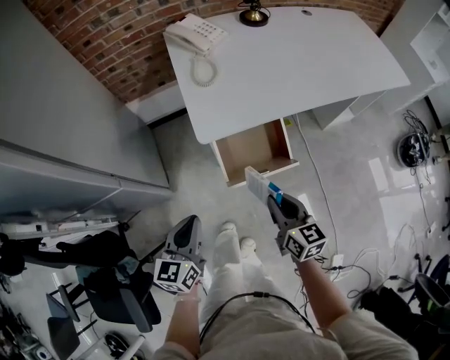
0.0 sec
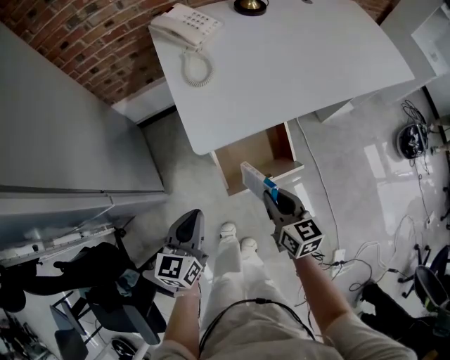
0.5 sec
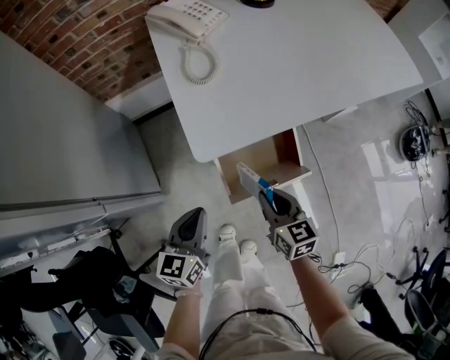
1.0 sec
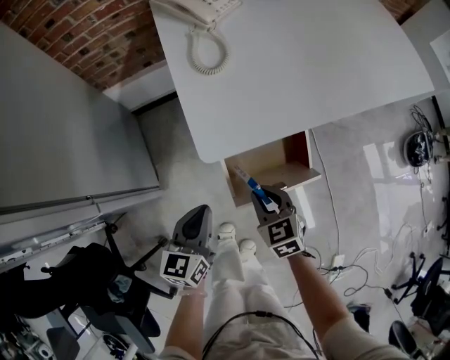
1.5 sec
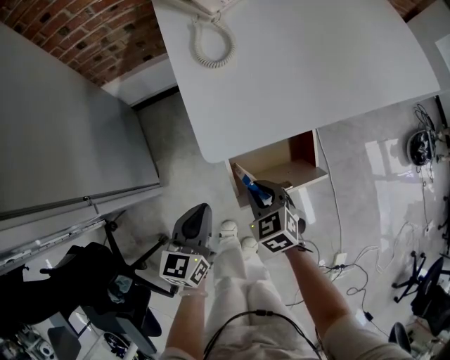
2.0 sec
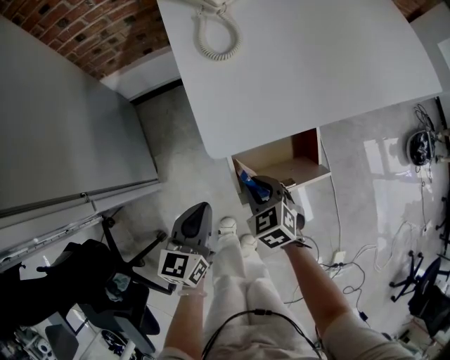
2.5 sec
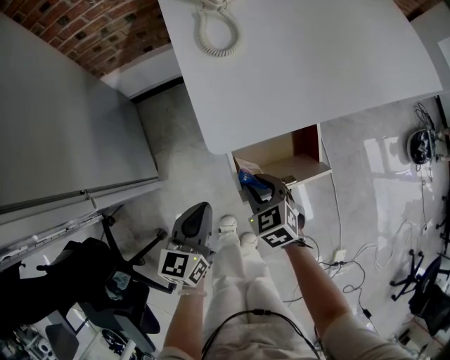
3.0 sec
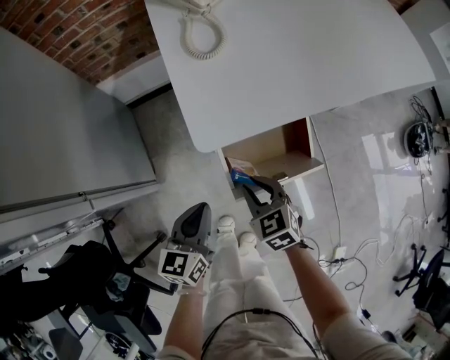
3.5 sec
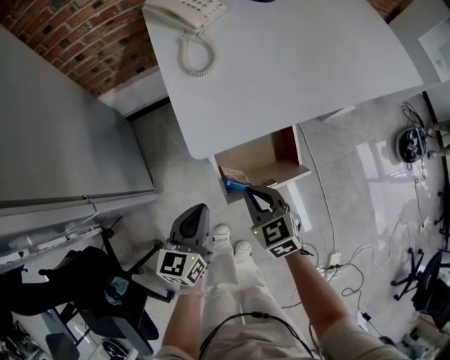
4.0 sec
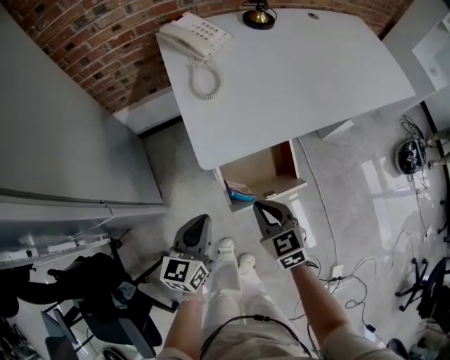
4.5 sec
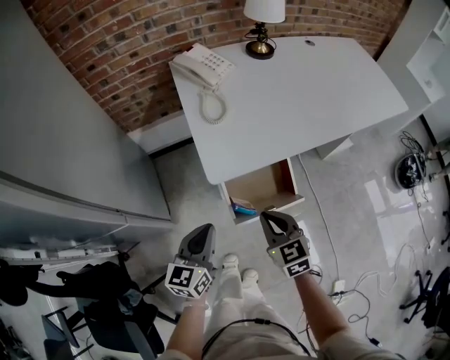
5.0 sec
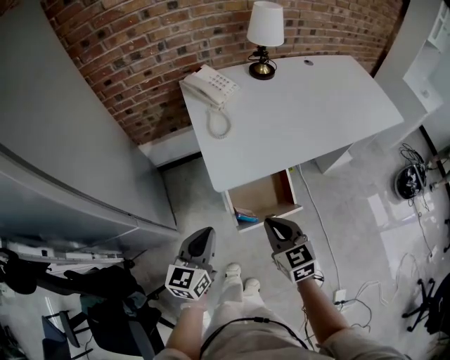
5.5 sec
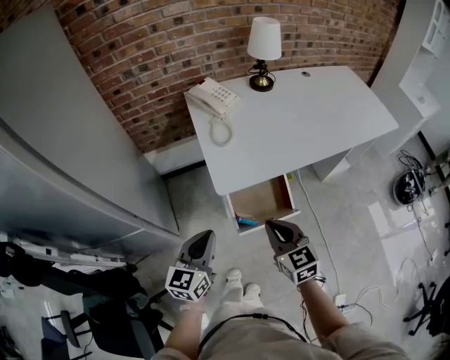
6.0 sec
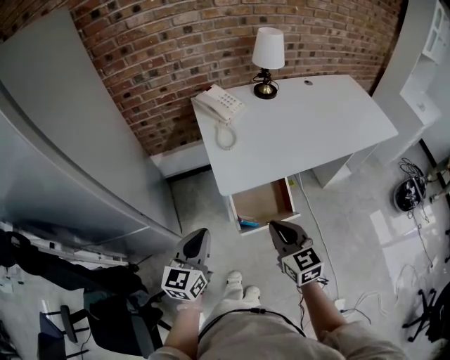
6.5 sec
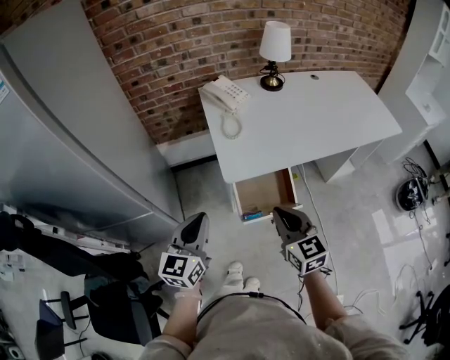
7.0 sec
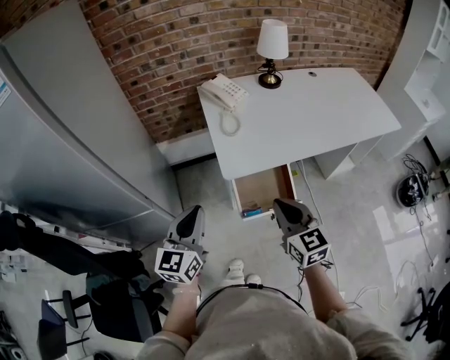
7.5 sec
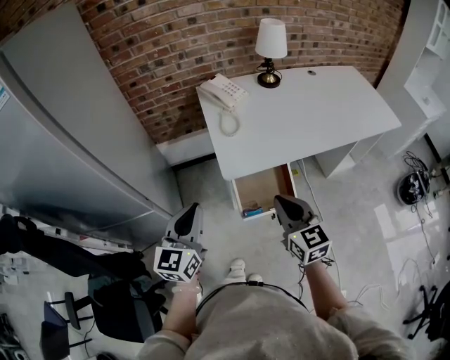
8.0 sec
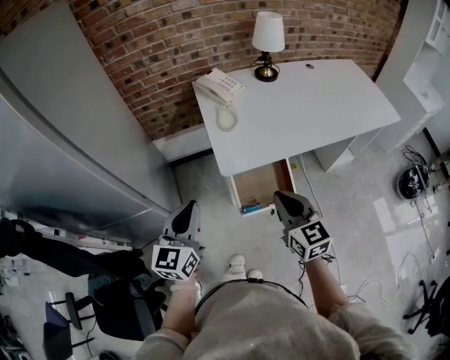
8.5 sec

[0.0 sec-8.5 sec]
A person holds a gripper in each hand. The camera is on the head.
0.0 sec to 2.0 sec: The right gripper shifts about 20 cm downward, forward and to the left, and turns by roughly 50 degrees. The left gripper heads downward and forward, covering some 15 cm.
2.0 sec to 4.0 sec: The right gripper moves upward, some 5 cm.
4.0 sec to 6.5 sec: The two grippers go some 20 cm upward. The right gripper changes its angle by about 20 degrees.
6.5 sec to 8.5 sec: The left gripper changes place by approximately 5 cm.

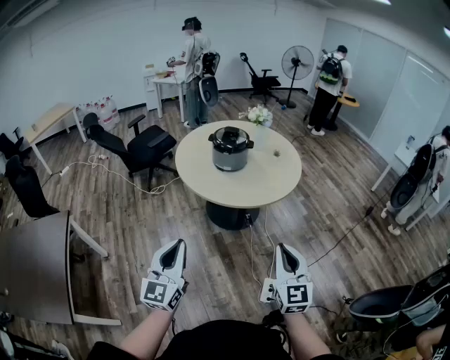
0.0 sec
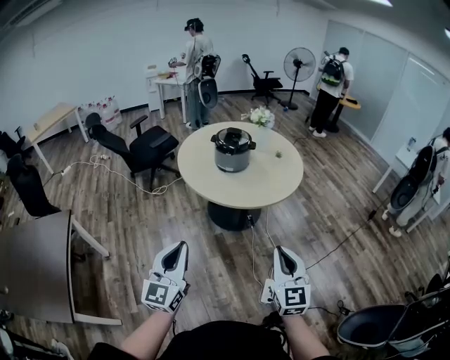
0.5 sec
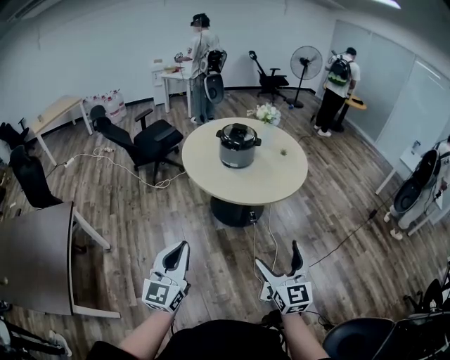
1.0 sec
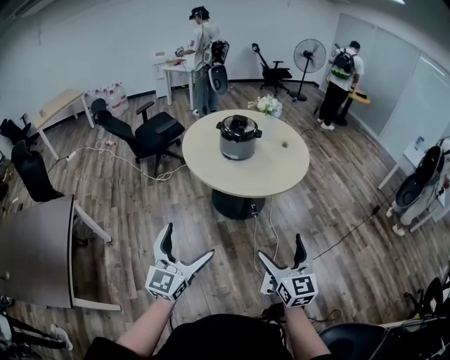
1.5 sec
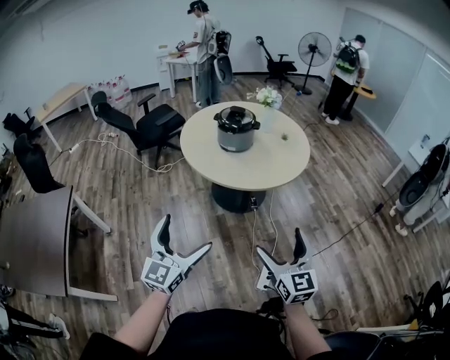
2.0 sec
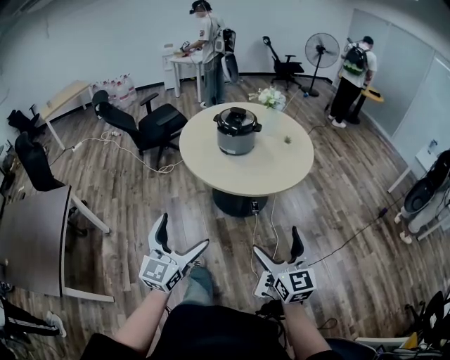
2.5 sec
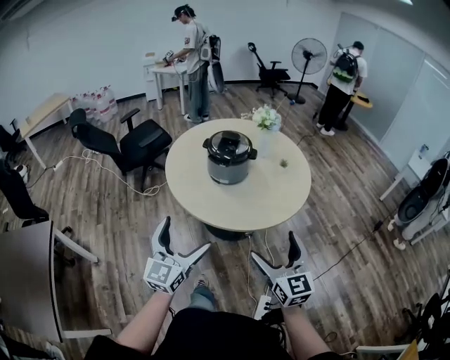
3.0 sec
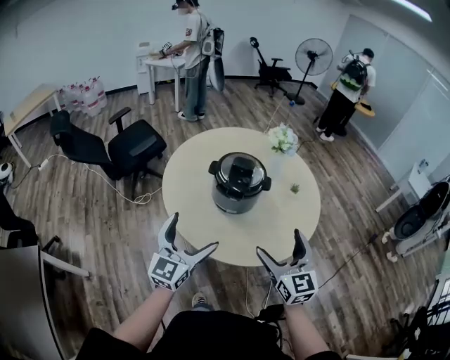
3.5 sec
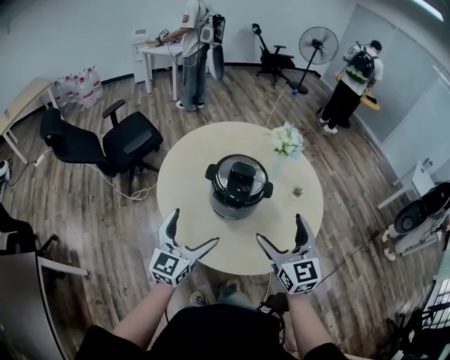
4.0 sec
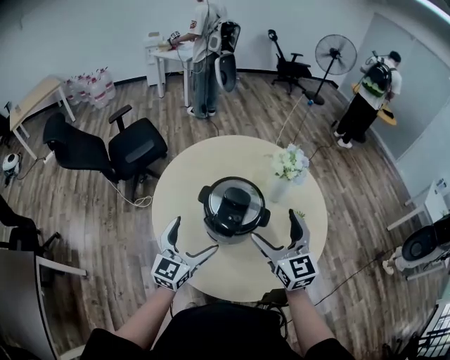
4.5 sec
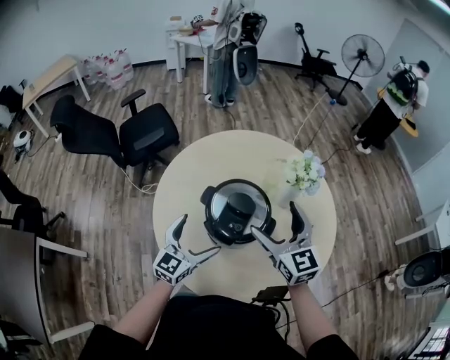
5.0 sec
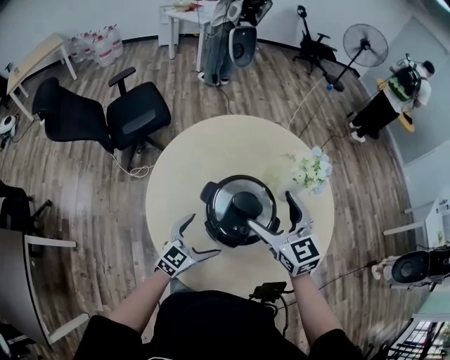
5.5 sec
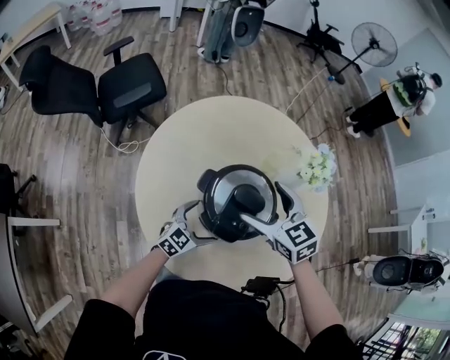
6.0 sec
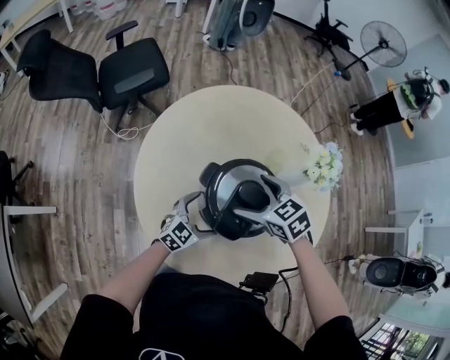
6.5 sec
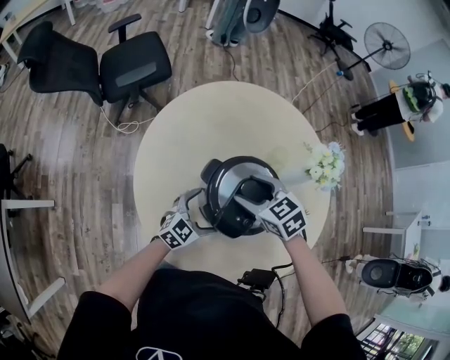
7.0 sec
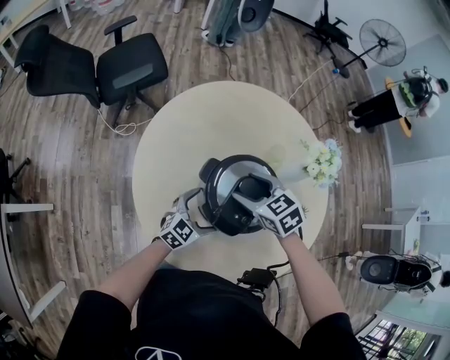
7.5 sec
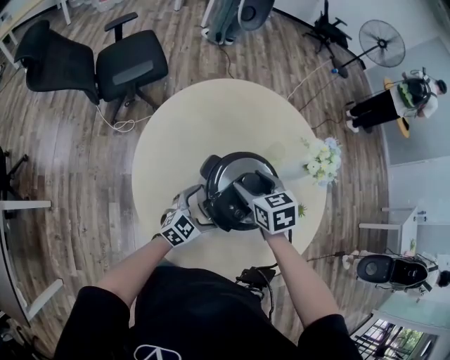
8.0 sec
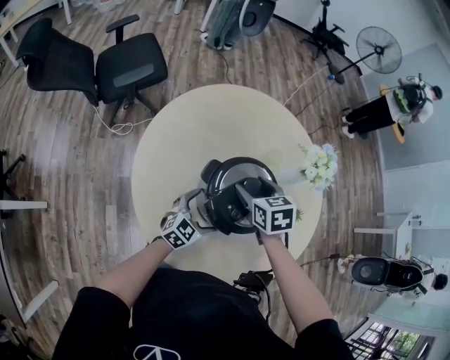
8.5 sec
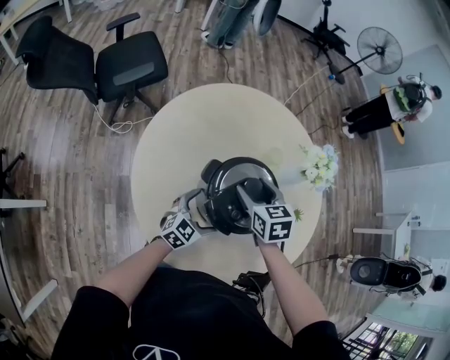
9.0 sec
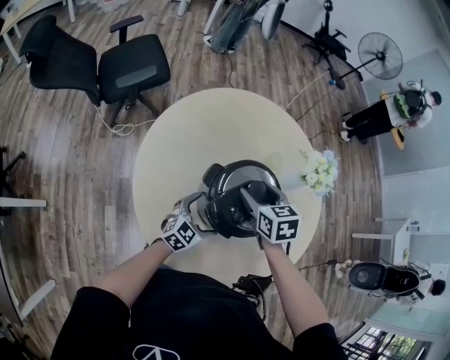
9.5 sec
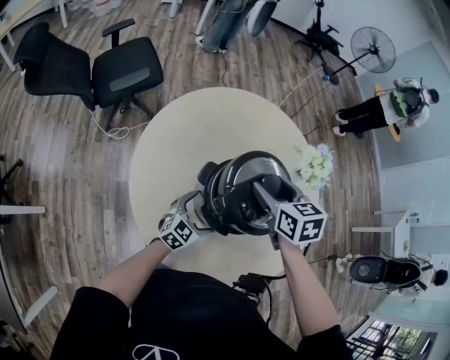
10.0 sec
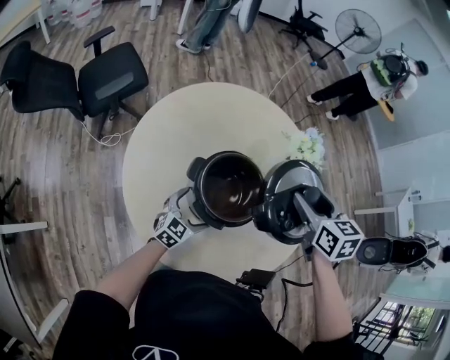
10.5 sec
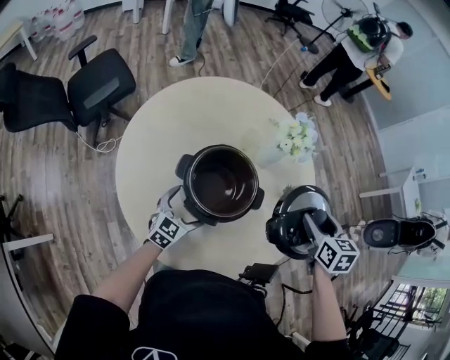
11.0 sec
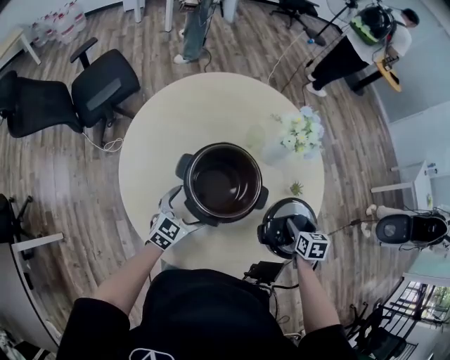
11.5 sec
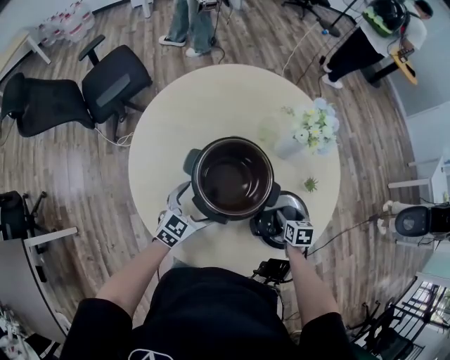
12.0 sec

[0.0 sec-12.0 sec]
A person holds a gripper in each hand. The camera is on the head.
0.0 sec to 2.0 sec: The right gripper opens its fingers. Meanwhile the left gripper travels to the right by approximately 5 cm, and opens up.
2.0 sec to 4.0 sec: The pair of grippers is taken forward, some 60 cm.
4.0 sec to 6.0 sec: The left gripper heads downward and forward, covering some 30 cm, and swivels approximately 30 degrees, while the right gripper is displaced forward by approximately 30 cm, and changes its angle by about 40 degrees.
6.0 sec to 8.0 sec: The right gripper goes about 10 cm downward, and closes.
8.0 sec to 10.0 sec: The right gripper moves upward, approximately 10 cm.
10.0 sec to 12.0 sec: The right gripper heads downward and to the right, covering about 40 cm, and changes its angle by approximately 30 degrees.

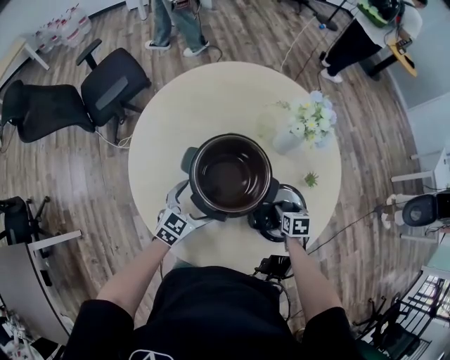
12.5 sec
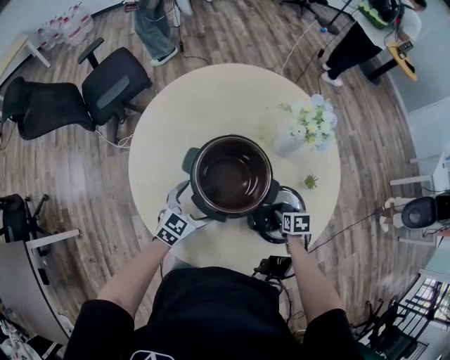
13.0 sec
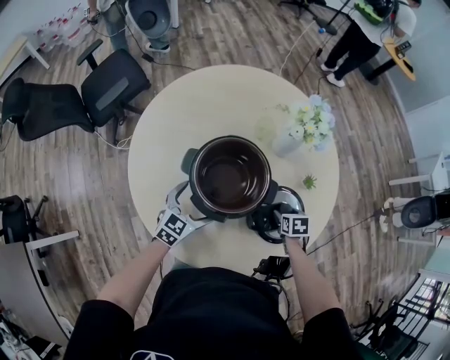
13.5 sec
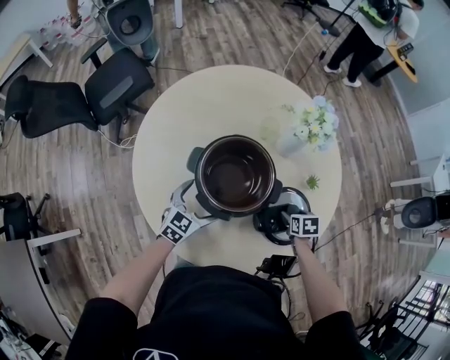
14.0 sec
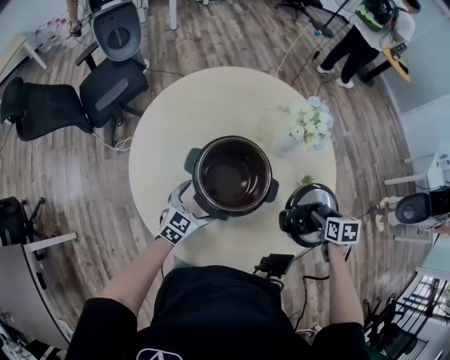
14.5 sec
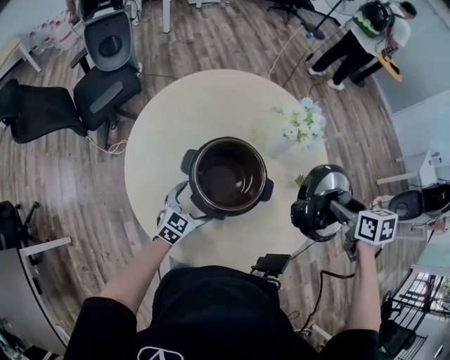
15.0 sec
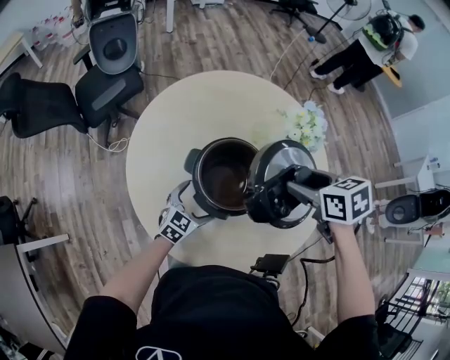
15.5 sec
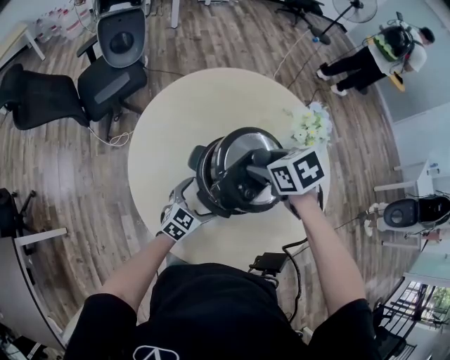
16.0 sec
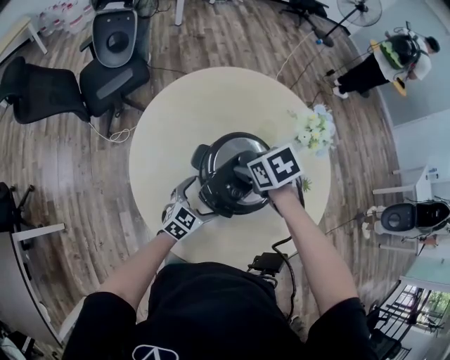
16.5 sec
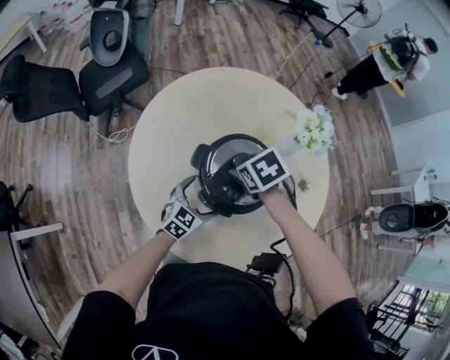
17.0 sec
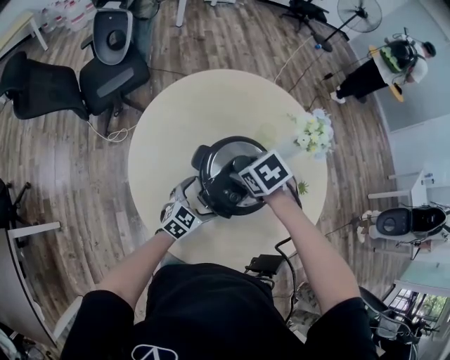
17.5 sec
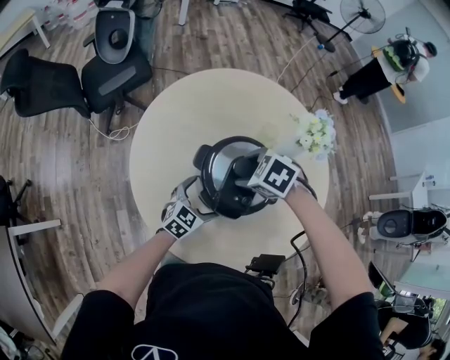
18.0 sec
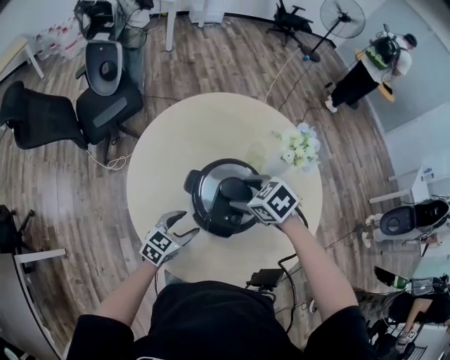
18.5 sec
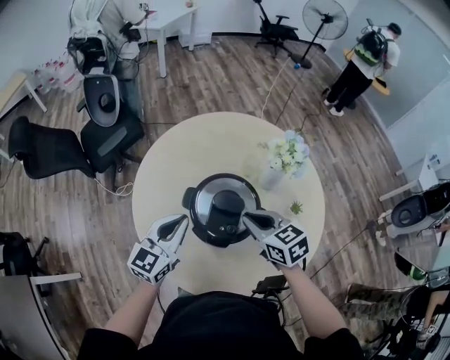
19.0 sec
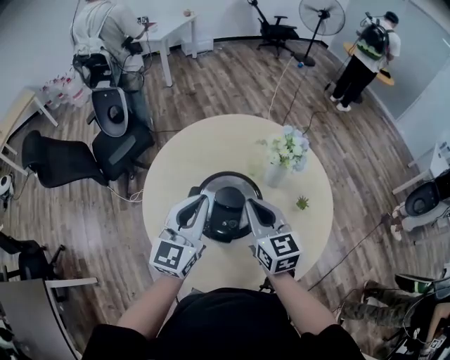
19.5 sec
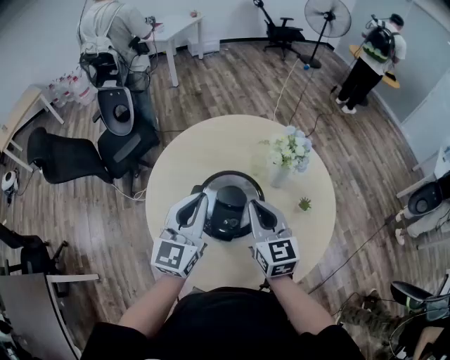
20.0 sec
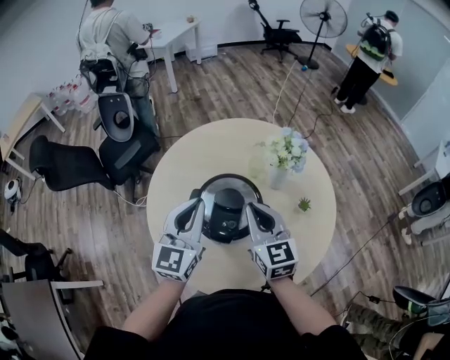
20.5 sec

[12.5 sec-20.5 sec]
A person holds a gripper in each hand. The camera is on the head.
12.5 sec to 14.5 sec: The right gripper shifts some 15 cm upward.
14.5 sec to 16.5 sec: The right gripper travels to the left by some 35 cm, and swivels approximately 40 degrees.
16.5 sec to 18.5 sec: The left gripper shifts by about 5 cm, and closes its fingers.
18.5 sec to 20.5 sec: The left gripper moves upward, roughly 30 cm, rotates about 40 degrees, and closes up. Meanwhile the right gripper shifts approximately 15 cm upward and to the right, points its fingers approximately 50 degrees further upward, and closes.
